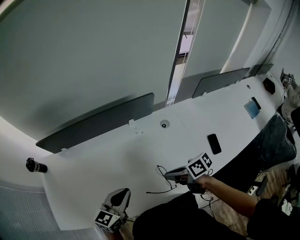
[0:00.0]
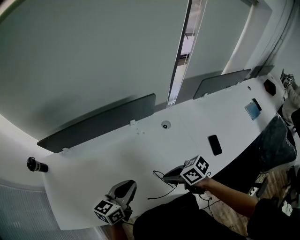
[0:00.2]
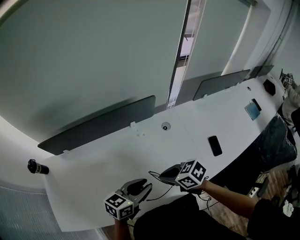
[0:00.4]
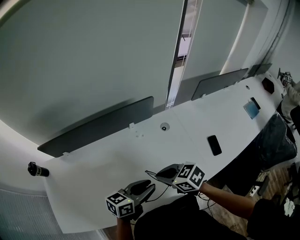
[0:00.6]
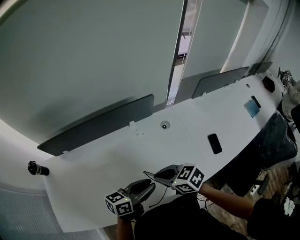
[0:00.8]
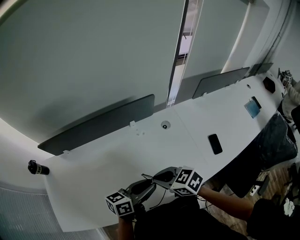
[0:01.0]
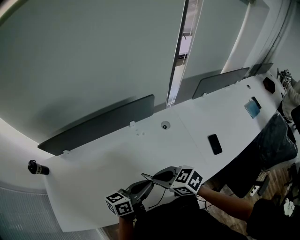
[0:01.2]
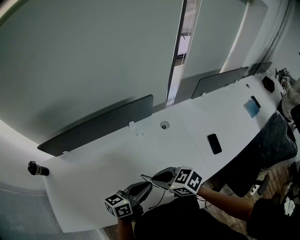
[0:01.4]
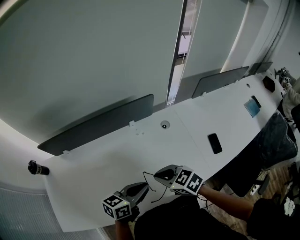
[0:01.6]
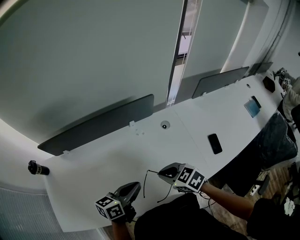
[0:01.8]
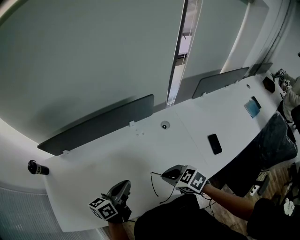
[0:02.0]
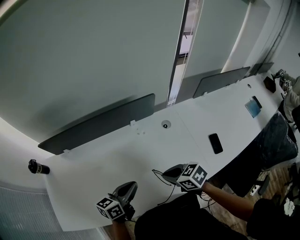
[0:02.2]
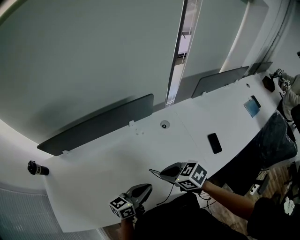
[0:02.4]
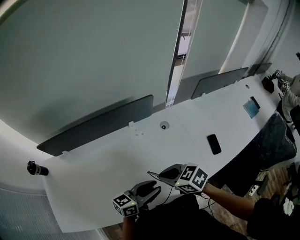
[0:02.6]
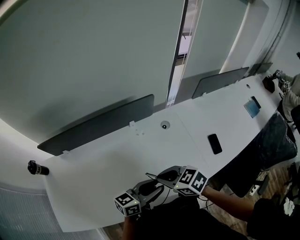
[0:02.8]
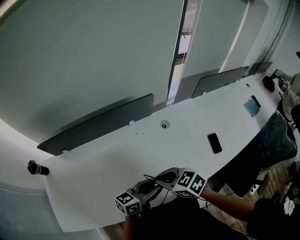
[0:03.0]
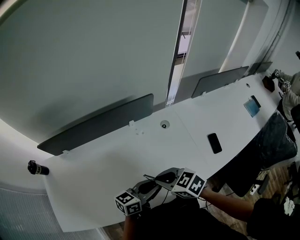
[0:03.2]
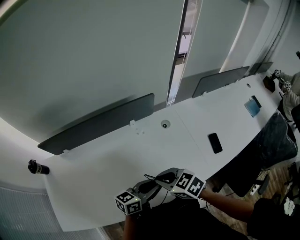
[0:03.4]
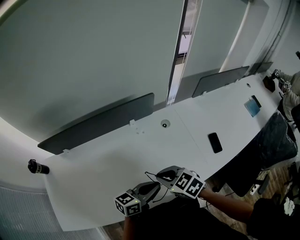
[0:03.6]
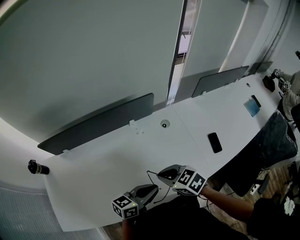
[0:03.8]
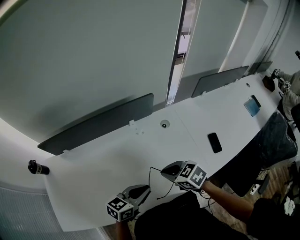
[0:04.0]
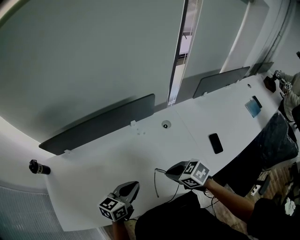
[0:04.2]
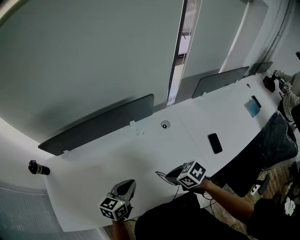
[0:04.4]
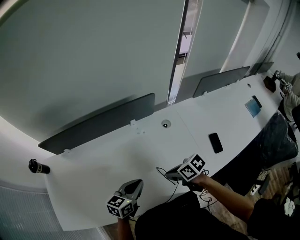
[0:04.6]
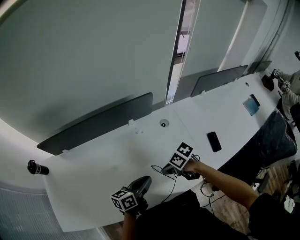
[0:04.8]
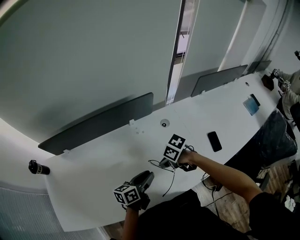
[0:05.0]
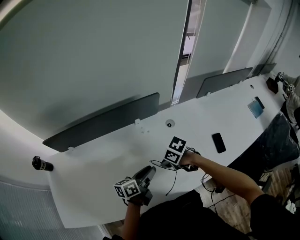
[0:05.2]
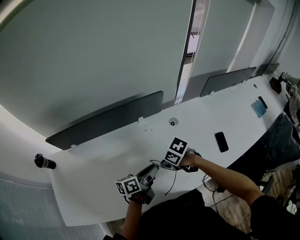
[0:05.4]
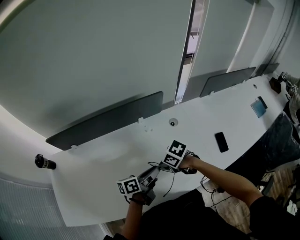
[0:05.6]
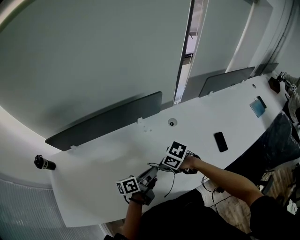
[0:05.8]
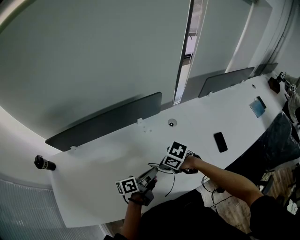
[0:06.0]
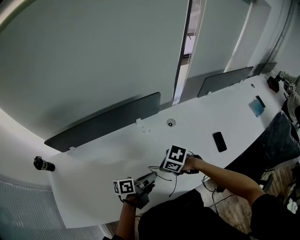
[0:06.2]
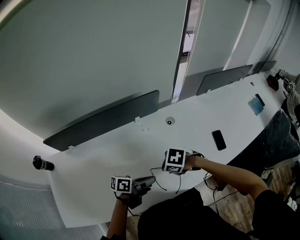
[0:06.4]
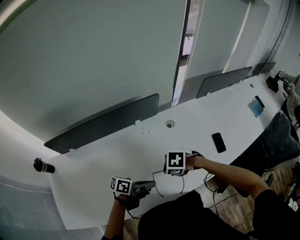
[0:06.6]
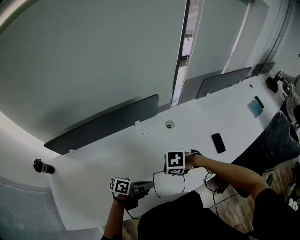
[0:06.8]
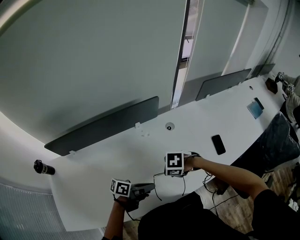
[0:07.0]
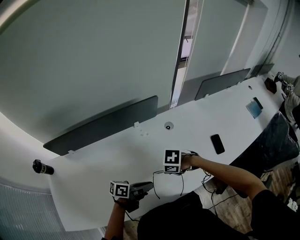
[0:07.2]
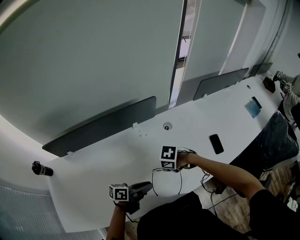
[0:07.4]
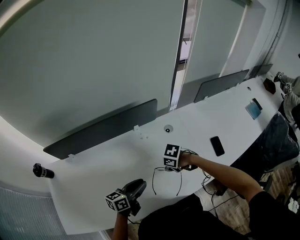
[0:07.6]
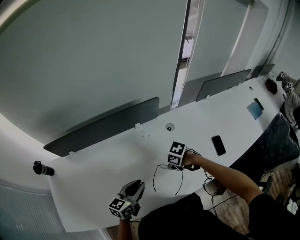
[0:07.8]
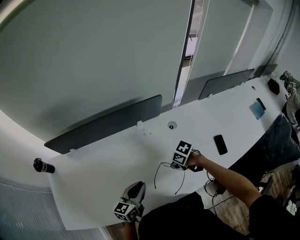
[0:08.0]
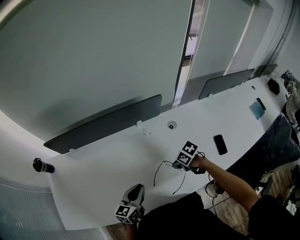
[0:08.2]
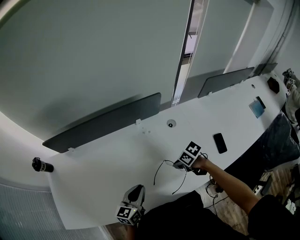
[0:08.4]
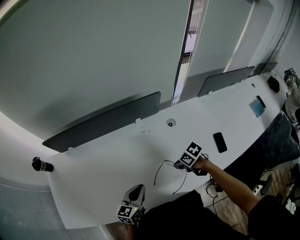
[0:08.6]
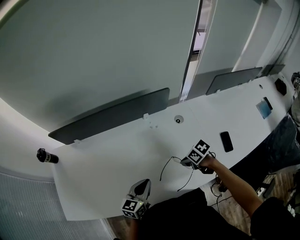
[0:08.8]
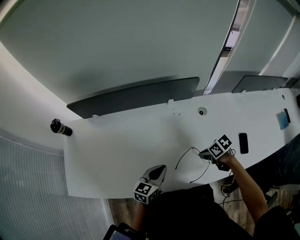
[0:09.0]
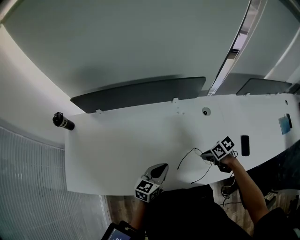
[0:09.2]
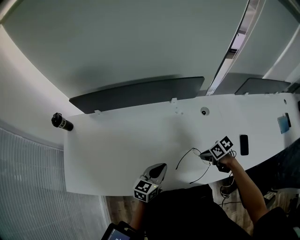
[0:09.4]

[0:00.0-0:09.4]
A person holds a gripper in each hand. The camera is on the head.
0:00.0 to 0:01.6: The left gripper ends up some 10 cm from where it was, turns by approximately 30 degrees, and opens, then closes once more. The right gripper shifts by approximately 5 cm, and rolls counterclockwise, seen from behind, by about 40 degrees.
0:03.2 to 0:04.8: The right gripper moves downward, roughly 10 cm, and swivels roughly 40 degrees.
0:04.8 to 0:06.2: The right gripper swivels approximately 30 degrees; the left gripper changes its angle by roughly 20 degrees, and opens and closes again.
0:06.2 to 0:07.8: The left gripper ends up some 5 cm from where it was, and rolls clockwise, seen from behind, by approximately 40 degrees. The right gripper goes about 5 cm downward.
0:07.8 to 0:09.4: The left gripper changes place by about 5 cm.

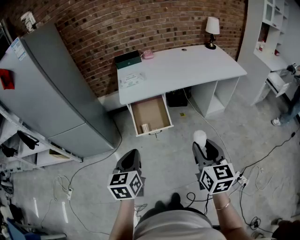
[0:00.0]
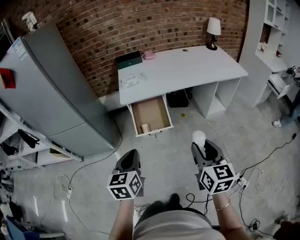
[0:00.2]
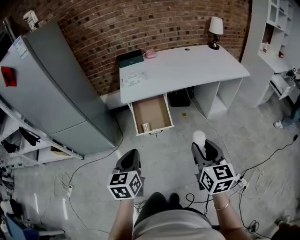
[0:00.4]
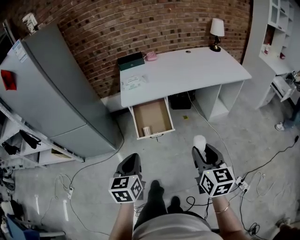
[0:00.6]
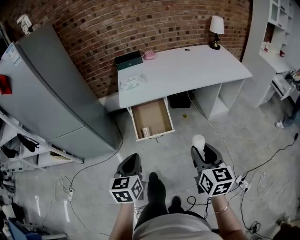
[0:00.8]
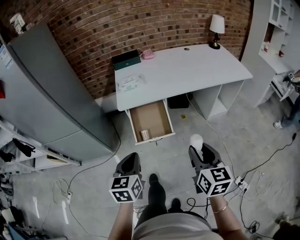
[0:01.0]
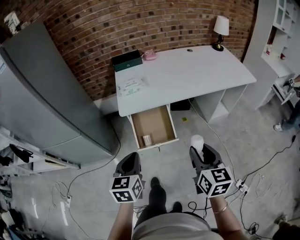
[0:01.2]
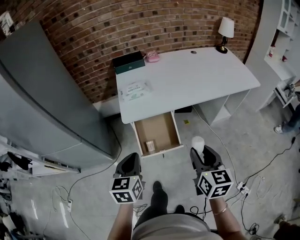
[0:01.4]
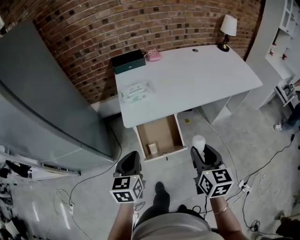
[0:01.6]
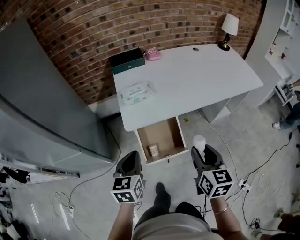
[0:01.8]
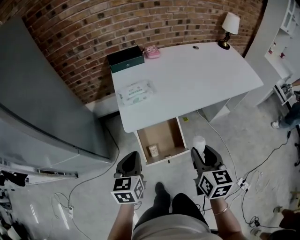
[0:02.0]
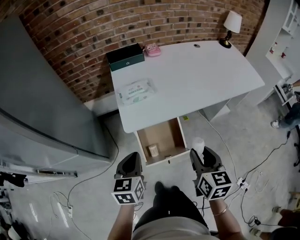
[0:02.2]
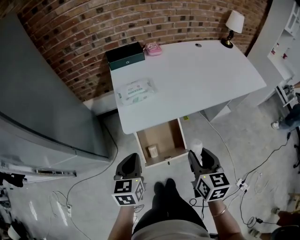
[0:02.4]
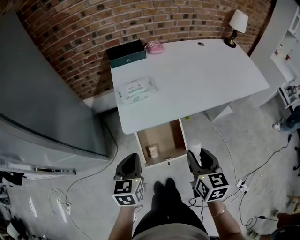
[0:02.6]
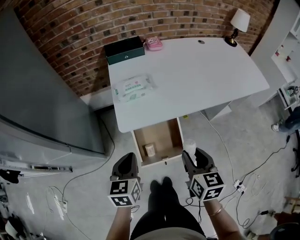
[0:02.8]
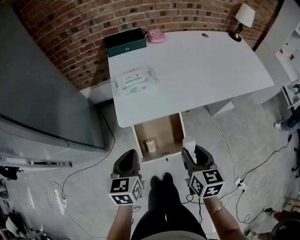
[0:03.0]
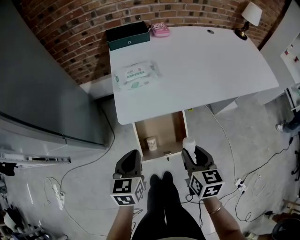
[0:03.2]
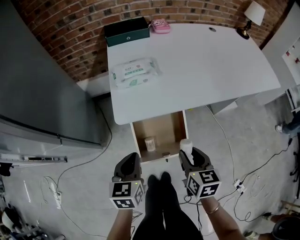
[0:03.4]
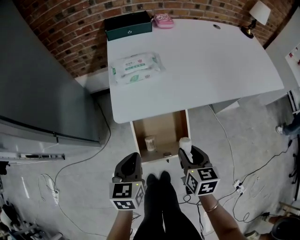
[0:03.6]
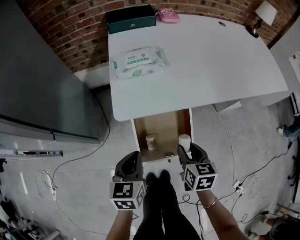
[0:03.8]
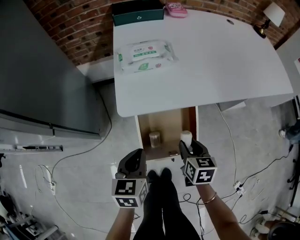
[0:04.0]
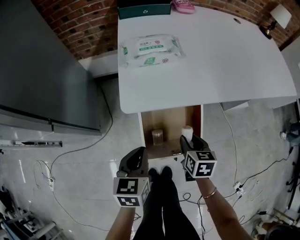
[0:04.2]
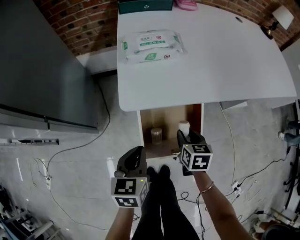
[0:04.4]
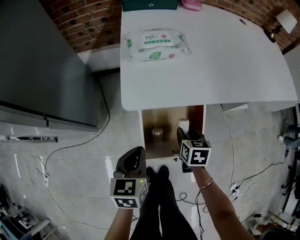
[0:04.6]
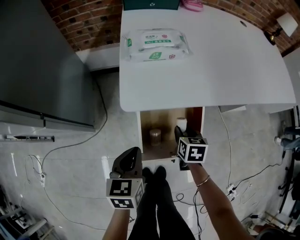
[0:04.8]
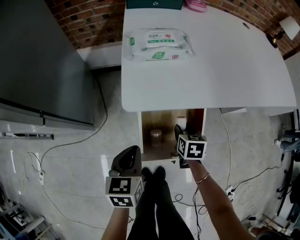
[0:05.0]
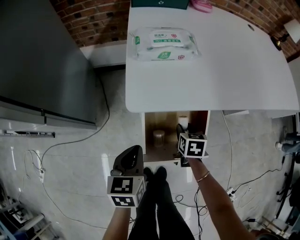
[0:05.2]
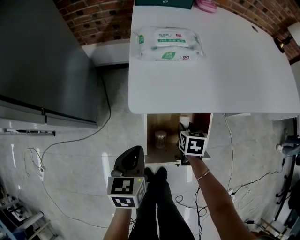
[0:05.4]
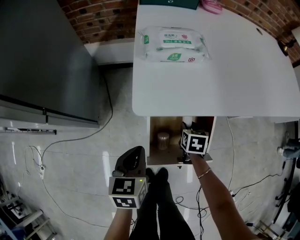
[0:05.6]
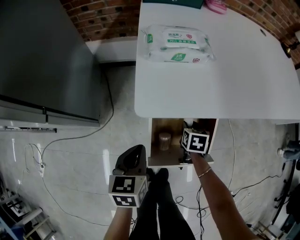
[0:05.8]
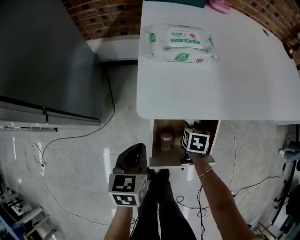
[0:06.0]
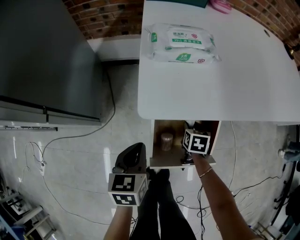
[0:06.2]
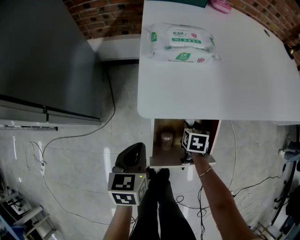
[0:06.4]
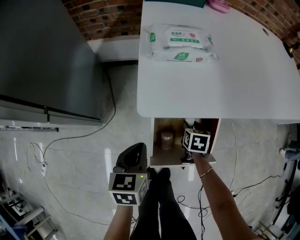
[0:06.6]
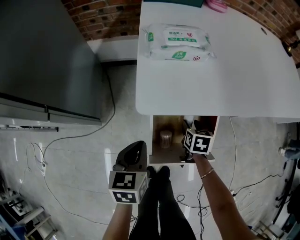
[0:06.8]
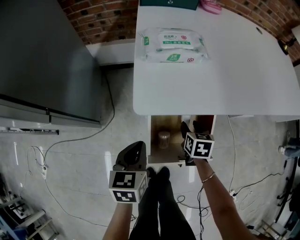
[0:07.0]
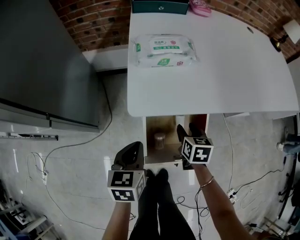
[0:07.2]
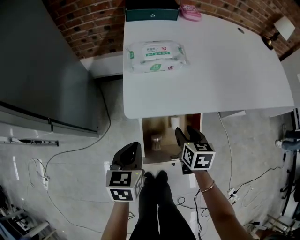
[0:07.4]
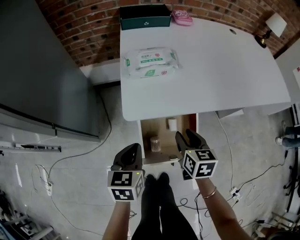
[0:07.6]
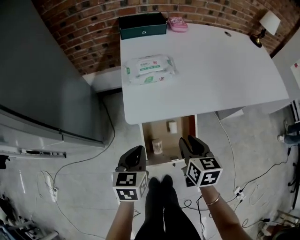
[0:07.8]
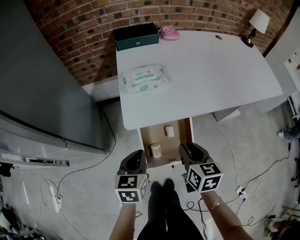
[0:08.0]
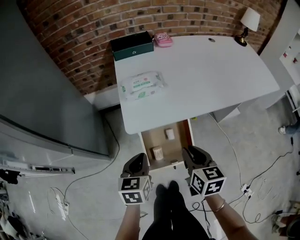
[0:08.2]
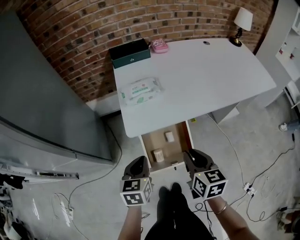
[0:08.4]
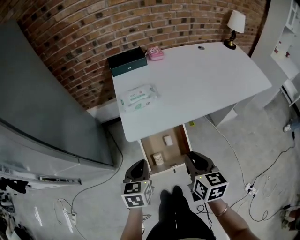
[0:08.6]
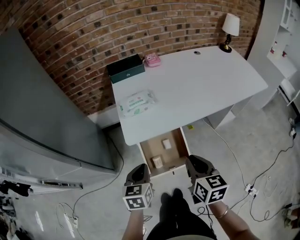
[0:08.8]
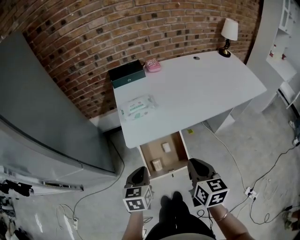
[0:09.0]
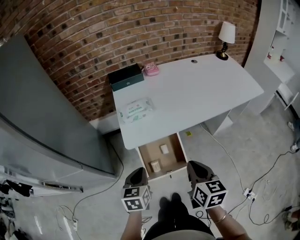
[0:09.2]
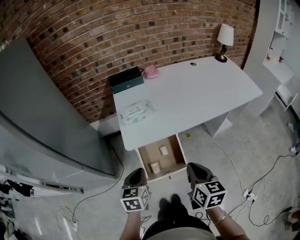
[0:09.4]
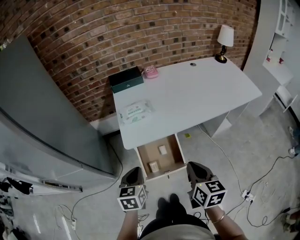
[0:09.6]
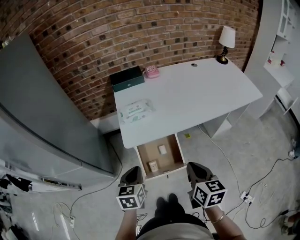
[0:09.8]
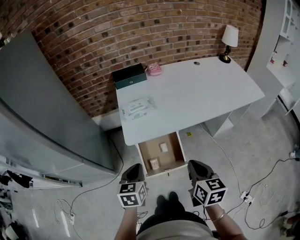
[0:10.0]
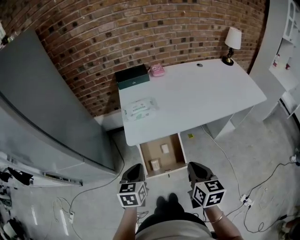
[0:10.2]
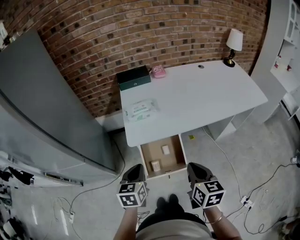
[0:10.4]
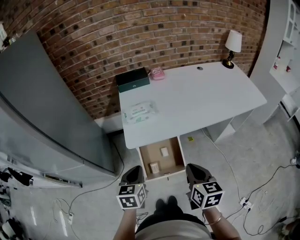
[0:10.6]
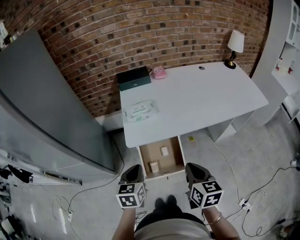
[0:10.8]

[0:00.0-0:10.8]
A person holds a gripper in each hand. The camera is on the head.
0:00.0 to 0:01.6: The two grippers go approximately 30 cm forward.
0:01.6 to 0:03.0: The right gripper goes roughly 15 cm downward, forward and to the left. Meanwhile the left gripper travels forward and downward by approximately 15 cm.
0:03.0 to 0:04.6: The right gripper moves downward and forward, some 30 cm; the left gripper shifts approximately 20 cm downward.
0:04.6 to 0:06.2: The right gripper moves downward and forward, approximately 10 cm, while the left gripper ends up some 10 cm from where it was.
0:06.2 to 0:07.8: The right gripper is displaced upward by about 25 cm, and rotates some 30 degrees. The left gripper goes about 10 cm upward.
0:07.8 to 0:09.2: The right gripper travels upward and backward by approximately 25 cm, and closes up, while the left gripper goes about 15 cm upward and backward.
0:09.2 to 0:10.8: The grippers move only a little.

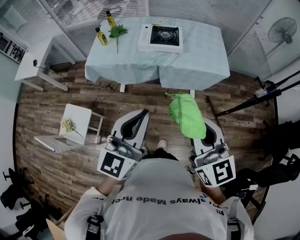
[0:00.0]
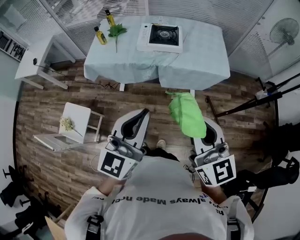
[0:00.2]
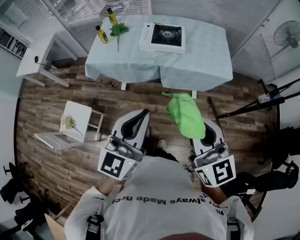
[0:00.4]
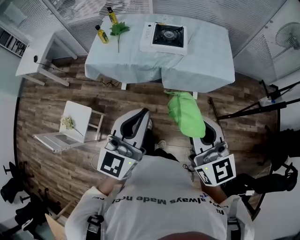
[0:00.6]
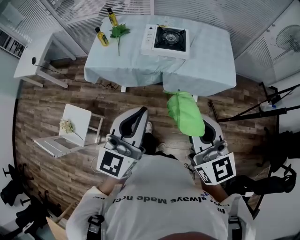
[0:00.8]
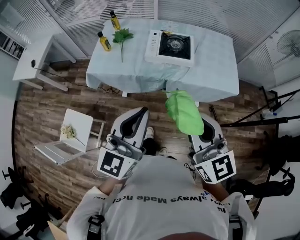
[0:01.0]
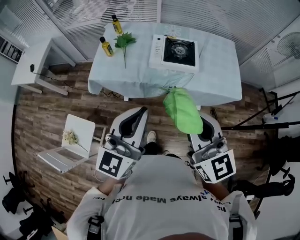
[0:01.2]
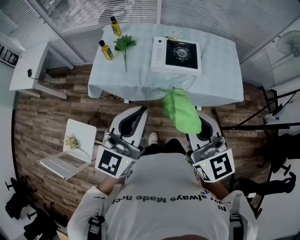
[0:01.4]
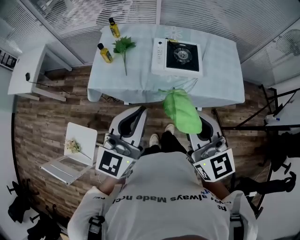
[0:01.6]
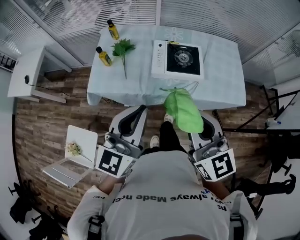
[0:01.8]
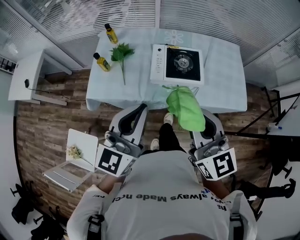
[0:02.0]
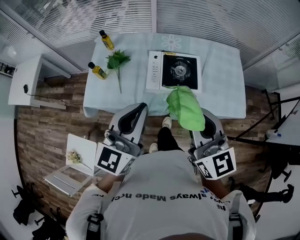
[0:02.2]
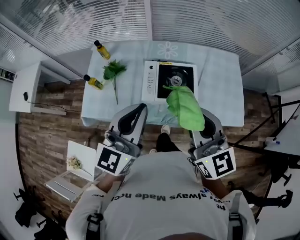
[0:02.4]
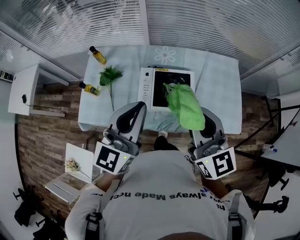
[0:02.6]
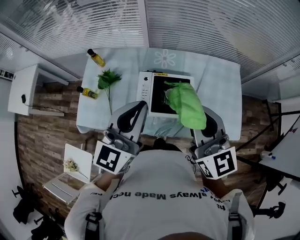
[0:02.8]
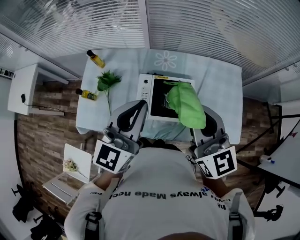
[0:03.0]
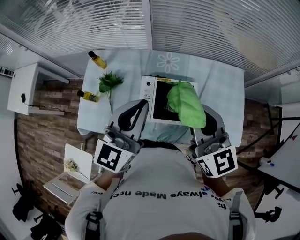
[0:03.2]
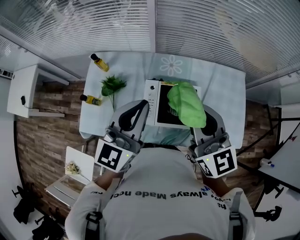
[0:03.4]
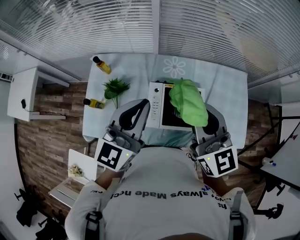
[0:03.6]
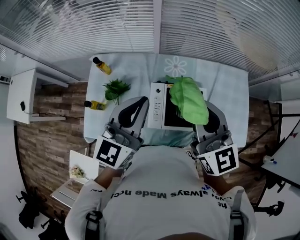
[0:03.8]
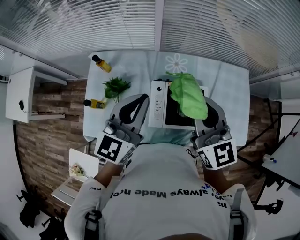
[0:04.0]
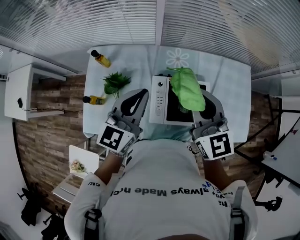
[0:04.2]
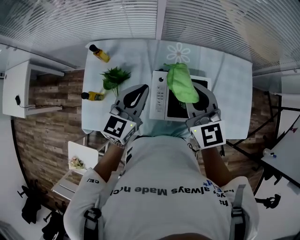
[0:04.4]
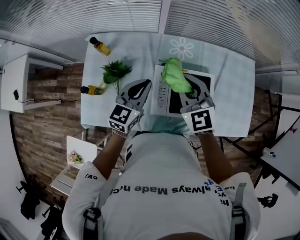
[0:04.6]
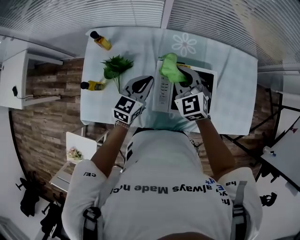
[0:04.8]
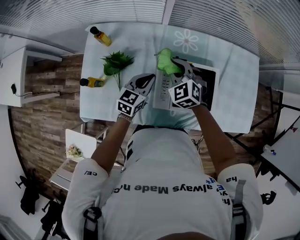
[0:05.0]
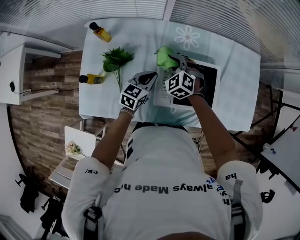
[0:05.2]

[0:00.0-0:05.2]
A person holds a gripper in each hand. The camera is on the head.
0:00.0 to 0:01.8: The grippers both shift forward and to the left by about 35 cm.
0:01.8 to 0:03.4: The grippers both shift forward by about 35 cm.
0:03.4 to 0:05.2: The left gripper travels downward by roughly 35 cm, and turns by roughly 40 degrees. Meanwhile the right gripper shifts approximately 40 cm downward, to the left and forward, and angles its fingers downward, by about 40 degrees.
